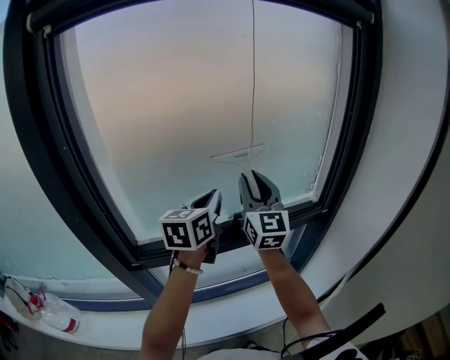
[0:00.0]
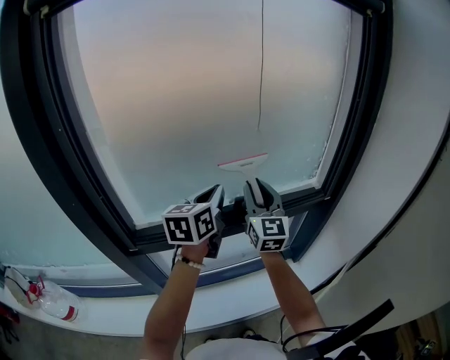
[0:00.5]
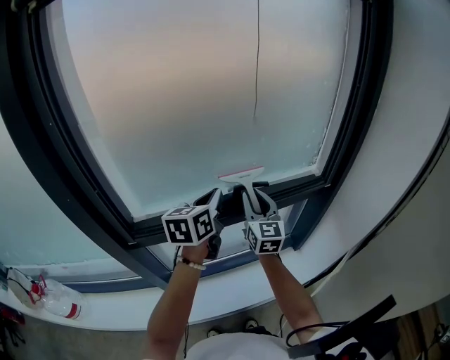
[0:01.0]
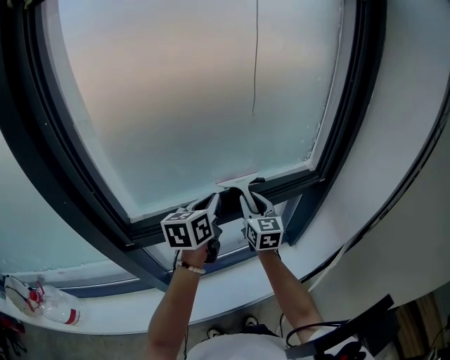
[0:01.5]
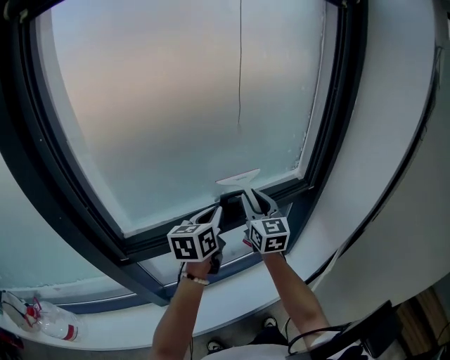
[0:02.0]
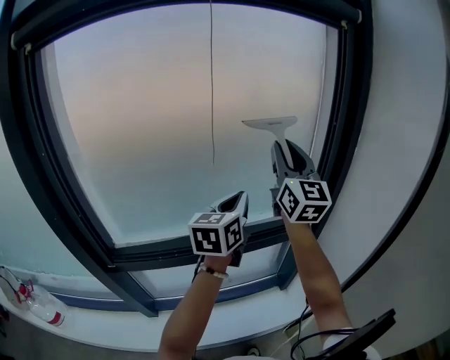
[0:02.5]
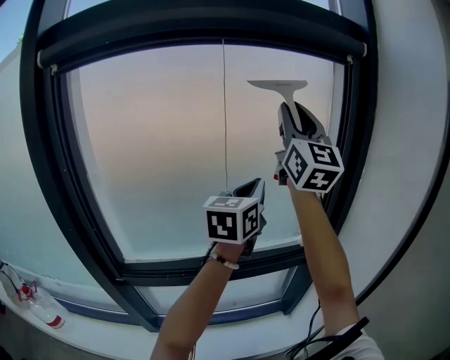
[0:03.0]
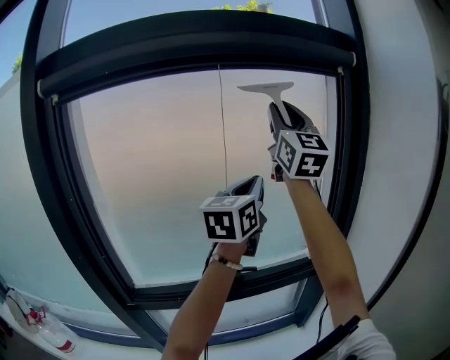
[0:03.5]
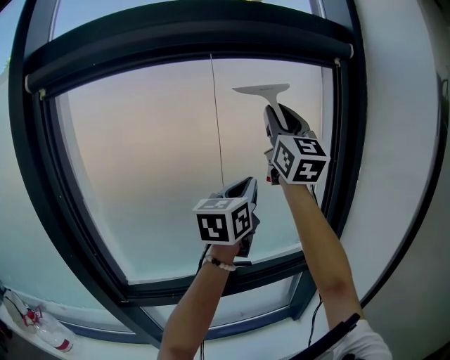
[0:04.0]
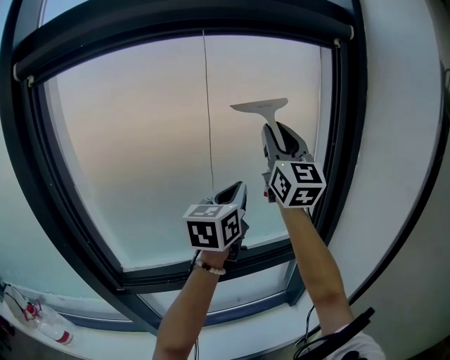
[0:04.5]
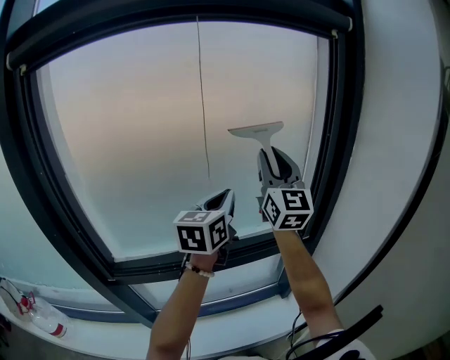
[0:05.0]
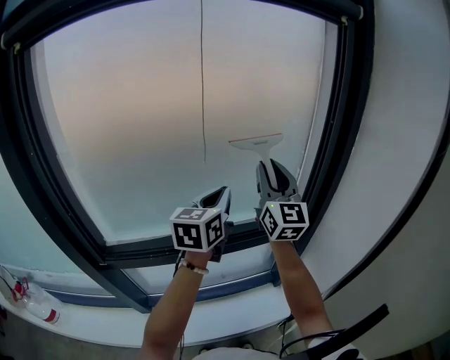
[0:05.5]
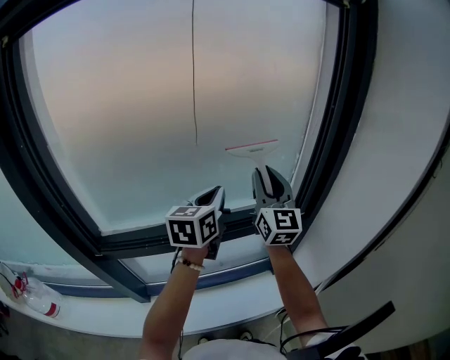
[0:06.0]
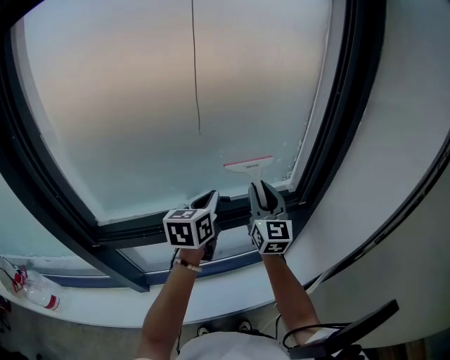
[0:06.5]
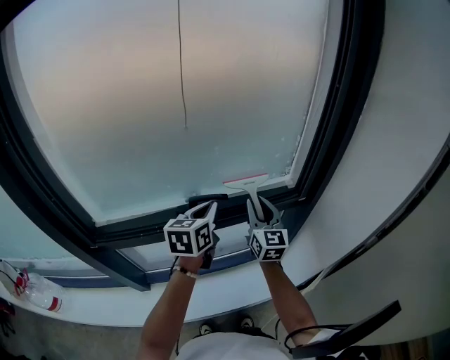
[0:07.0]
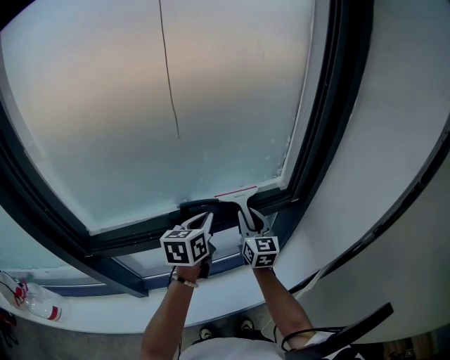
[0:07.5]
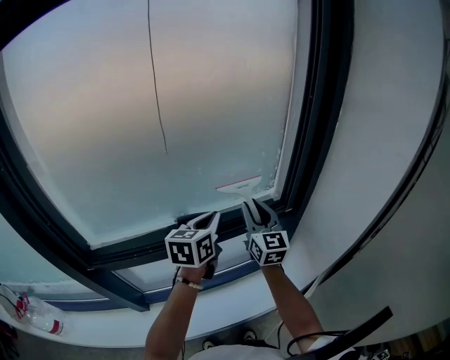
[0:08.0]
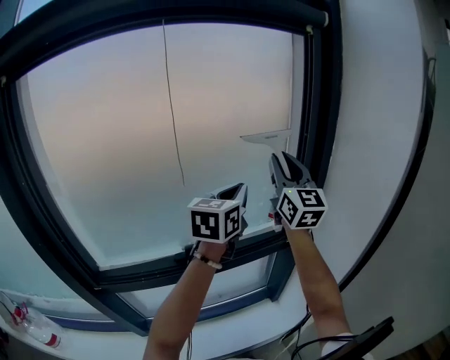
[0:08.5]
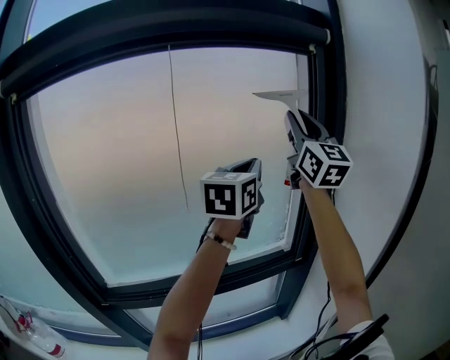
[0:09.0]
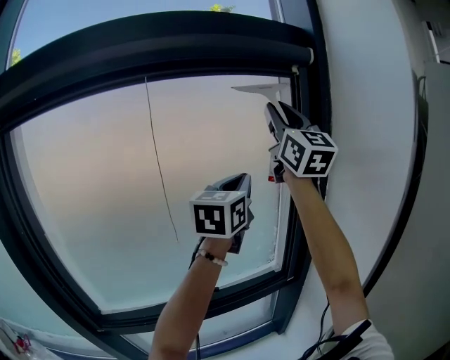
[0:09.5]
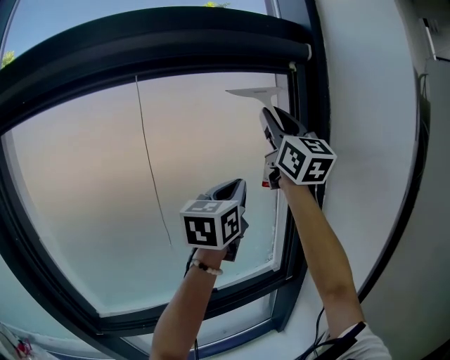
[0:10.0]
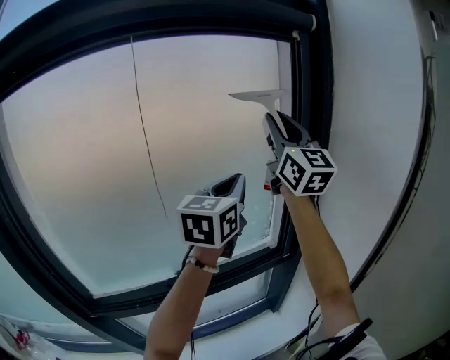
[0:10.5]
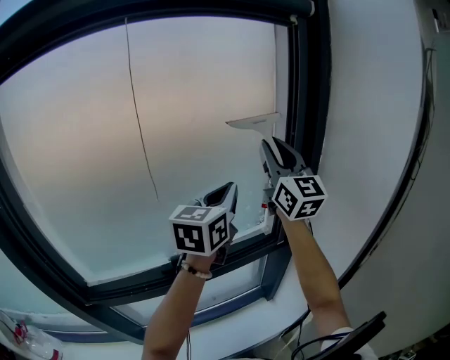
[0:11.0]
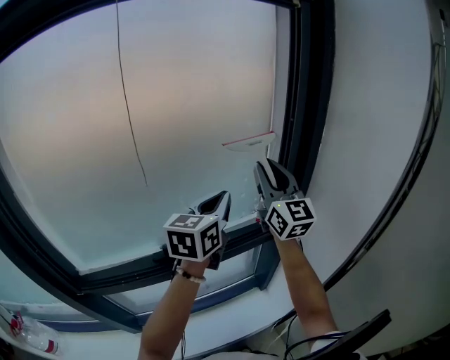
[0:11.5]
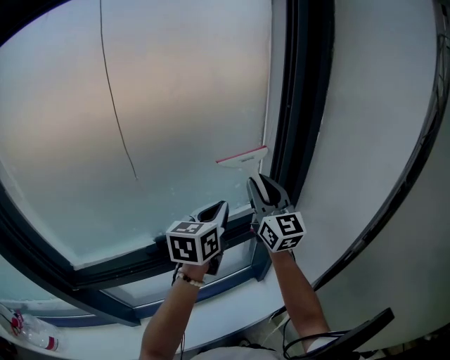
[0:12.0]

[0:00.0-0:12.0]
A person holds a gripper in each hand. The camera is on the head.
0:00.0 to 0:02.0: Both grippers travel together downward, approximately 15 cm.
0:02.0 to 0:04.0: The right gripper heads upward, covering approximately 50 cm, and points its fingers approximately 30 degrees further upward. The left gripper travels upward and to the right by roughly 35 cm, and swivels approximately 30 degrees.
0:04.0 to 0:06.0: The left gripper heads downward, covering some 20 cm. Meanwhile the right gripper moves downward, approximately 35 cm.
0:06.0 to 0:08.0: The left gripper travels downward by about 5 cm. The right gripper shifts roughly 15 cm downward.
0:08.0 to 0:10.0: Both grippers travel together upward, roughly 40 cm. The right gripper changes its angle by approximately 30 degrees, while the left gripper rotates some 30 degrees.
0:10.0 to 0:12.0: Both grippers move downward, some 30 cm. The left gripper swivels about 20 degrees.

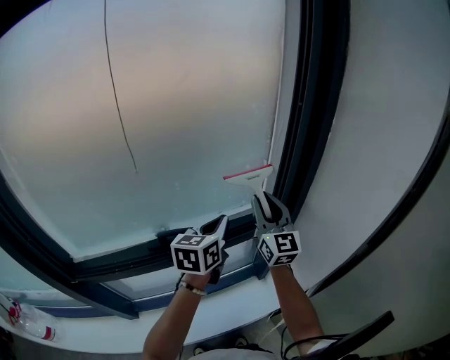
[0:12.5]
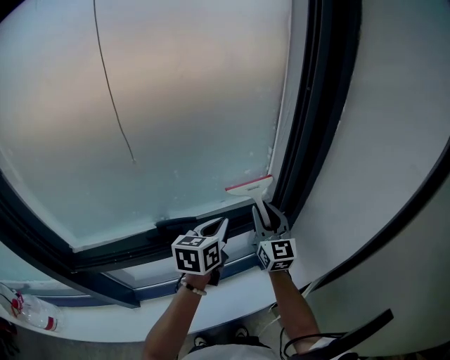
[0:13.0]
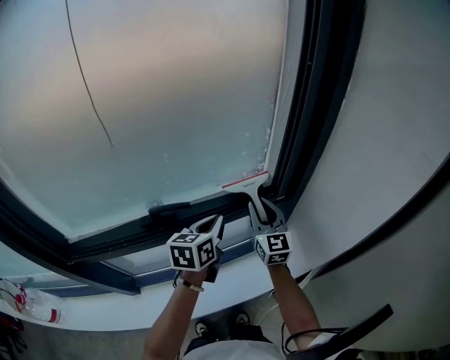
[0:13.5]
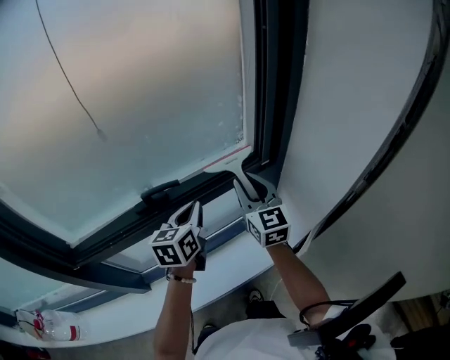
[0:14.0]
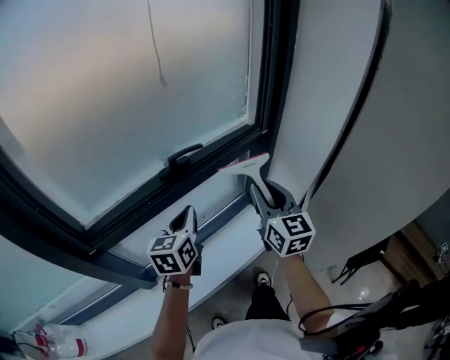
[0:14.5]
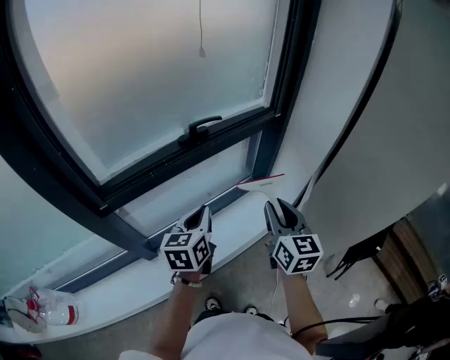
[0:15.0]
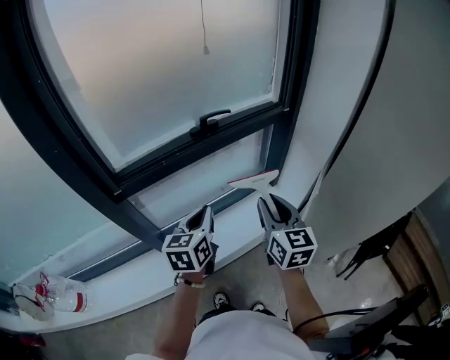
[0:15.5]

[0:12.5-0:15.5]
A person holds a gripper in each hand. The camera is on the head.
0:12.5 to 0:14.0: Both grippers travel together downward and backward, roughly 10 cm.
0:14.0 to 0:15.5: Both grippers move backward, some 35 cm.

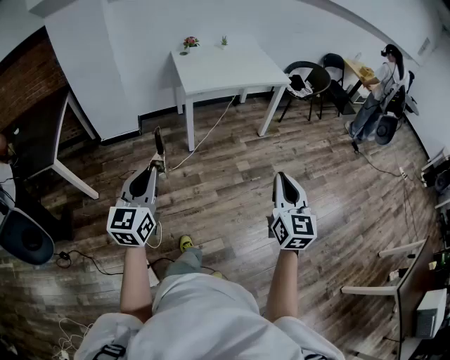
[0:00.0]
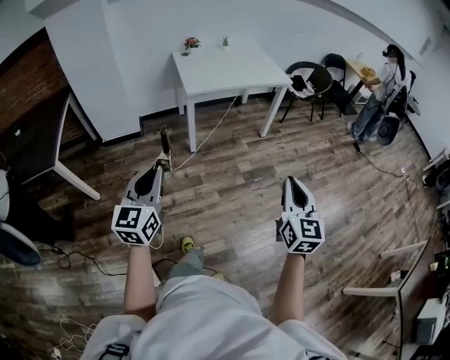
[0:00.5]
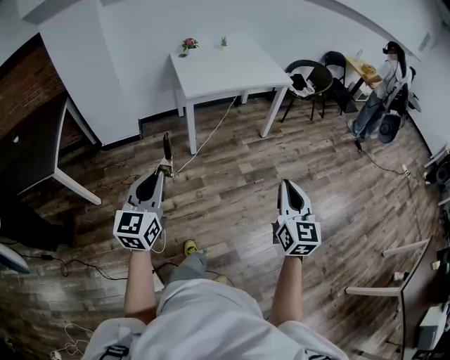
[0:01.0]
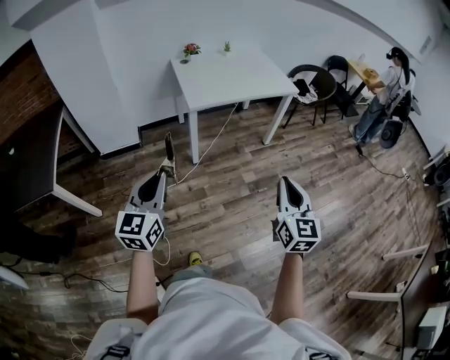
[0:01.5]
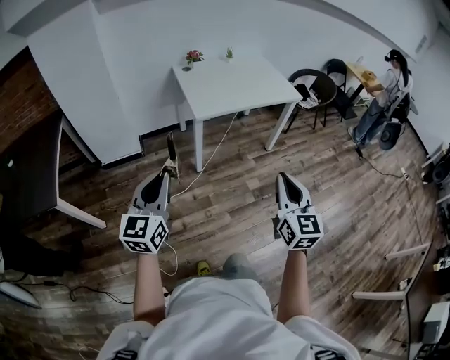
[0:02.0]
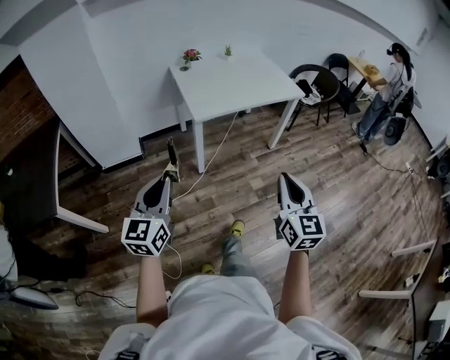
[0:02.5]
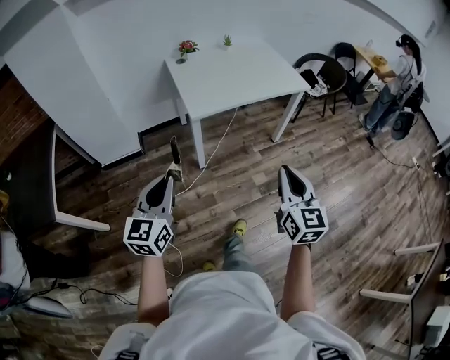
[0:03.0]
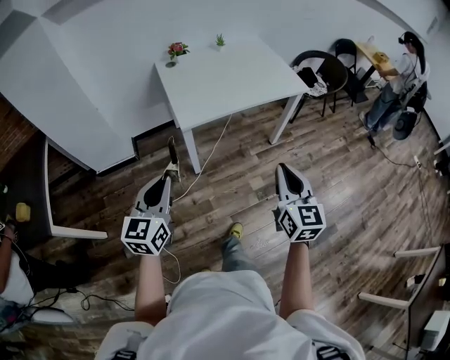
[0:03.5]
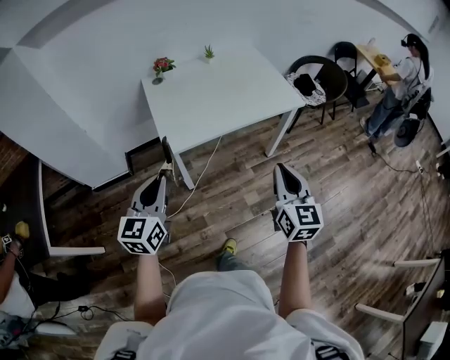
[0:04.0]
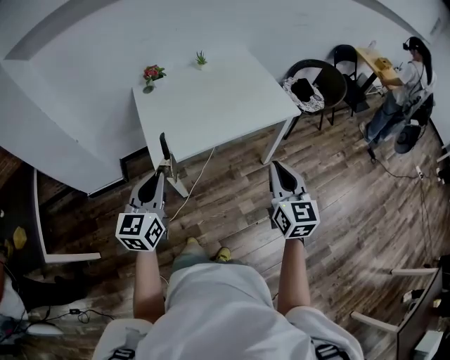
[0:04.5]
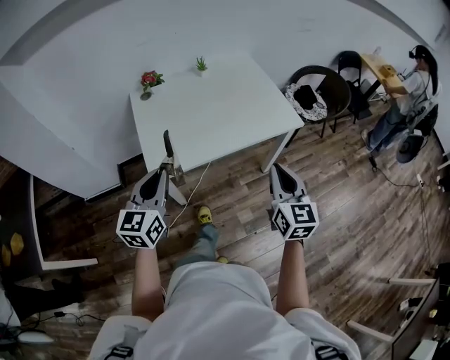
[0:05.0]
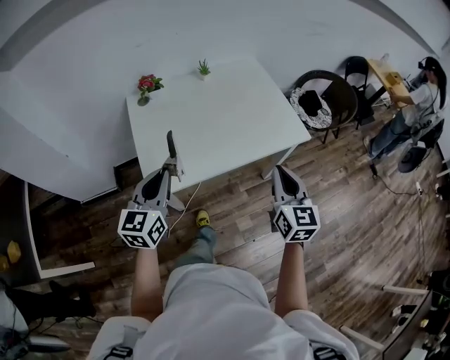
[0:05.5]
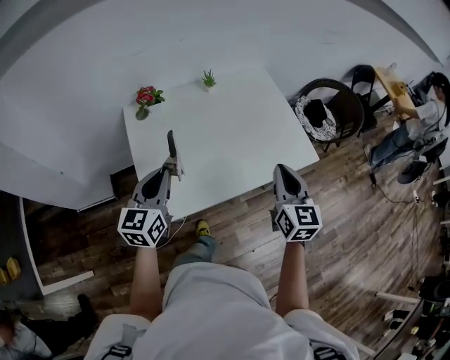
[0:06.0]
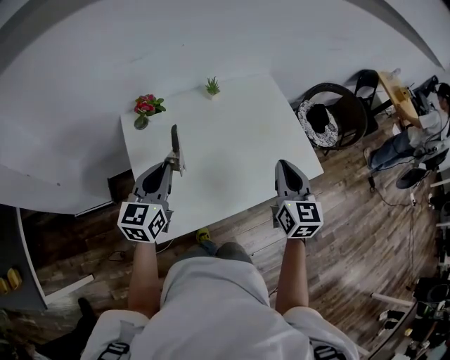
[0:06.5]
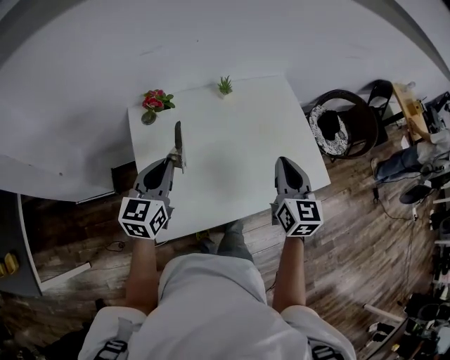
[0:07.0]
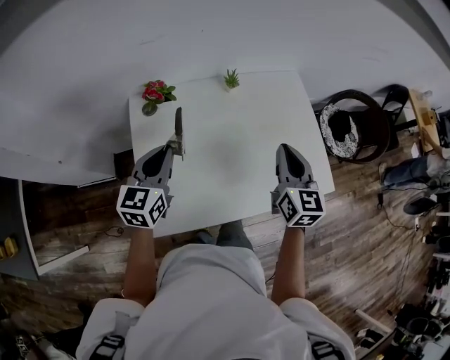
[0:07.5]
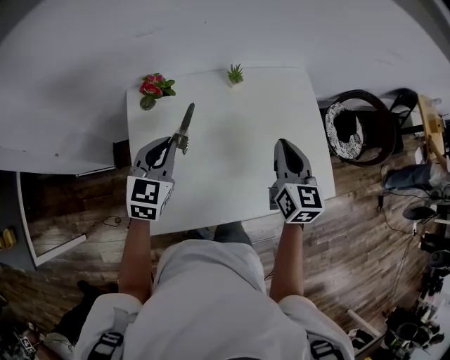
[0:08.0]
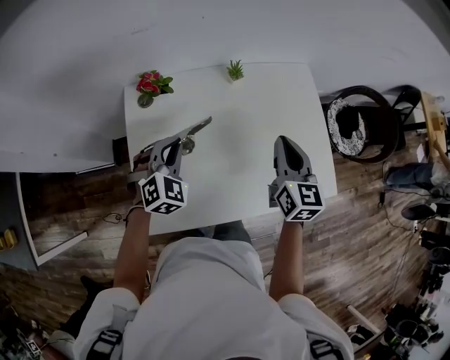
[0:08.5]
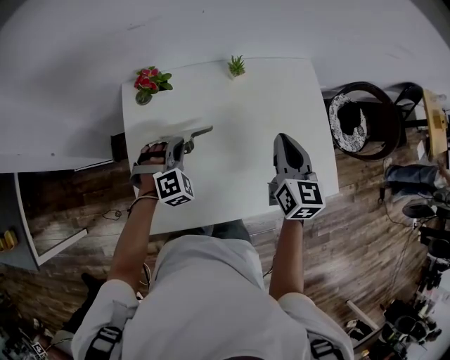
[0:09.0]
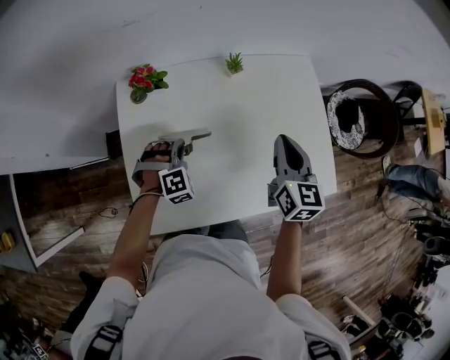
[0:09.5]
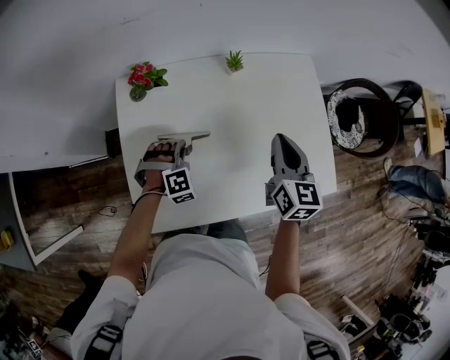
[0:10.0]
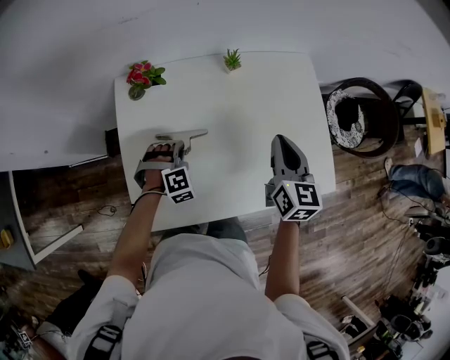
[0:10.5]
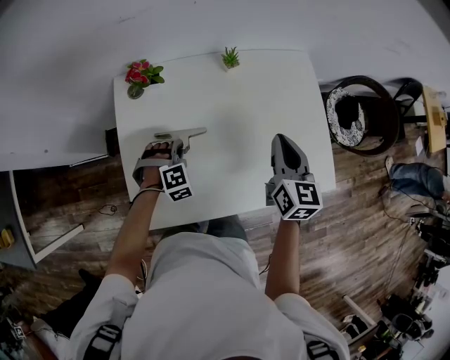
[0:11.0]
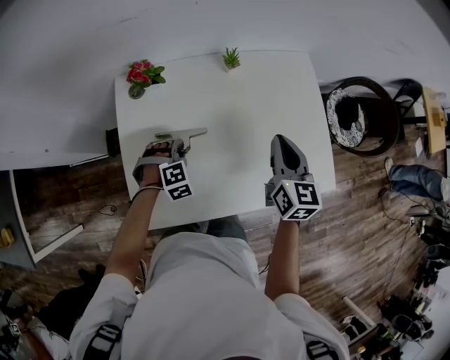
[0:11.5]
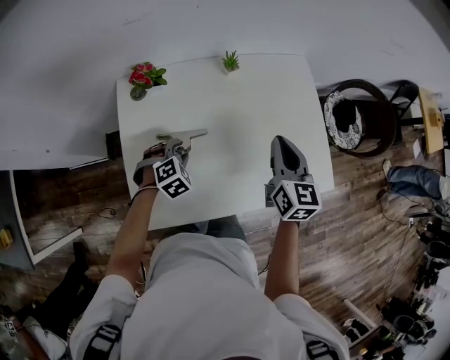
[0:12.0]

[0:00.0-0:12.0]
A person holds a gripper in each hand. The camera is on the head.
0:00.0 to 0:02.0: The grippers both shift forward and to the left by roughly 20 cm.
0:02.0 to 0:04.0: Both grippers move forward, about 35 cm.
0:04.0 to 0:06.0: The grippers both shift forward by some 40 cm.
0:06.0 to 0:08.0: The grippers both shift forward by some 20 cm. The left gripper changes its angle by about 20 degrees.
0:08.0 to 0:10.0: The left gripper moves downward, some 20 cm, and rotates around the line of its fingers by approximately 60 degrees, clockwise from behind.
0:10.0 to 0:12.0: The left gripper changes its angle by roughly 20 degrees, and opens its fingers.
